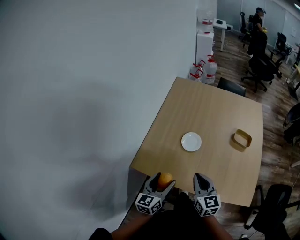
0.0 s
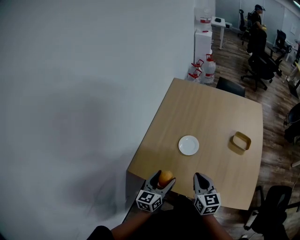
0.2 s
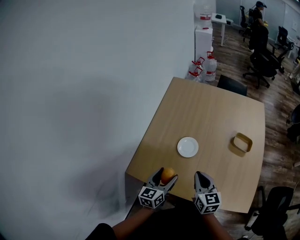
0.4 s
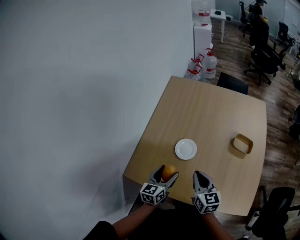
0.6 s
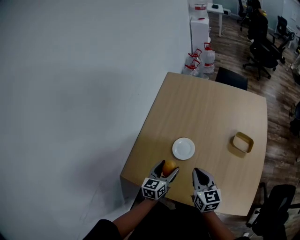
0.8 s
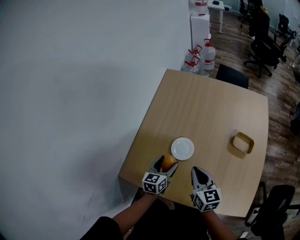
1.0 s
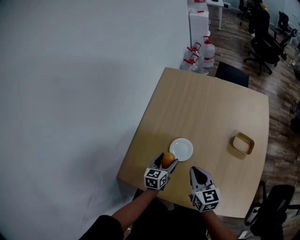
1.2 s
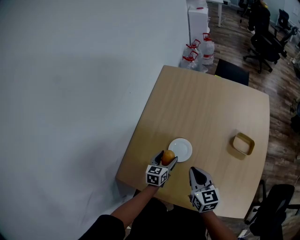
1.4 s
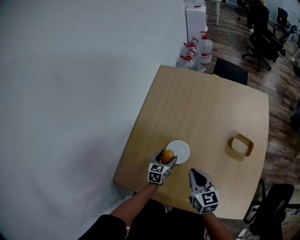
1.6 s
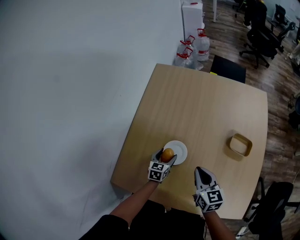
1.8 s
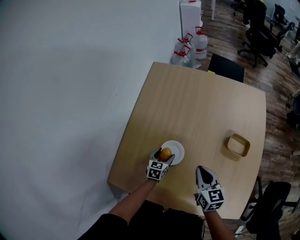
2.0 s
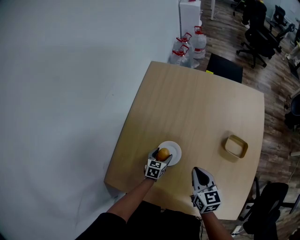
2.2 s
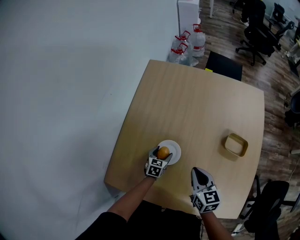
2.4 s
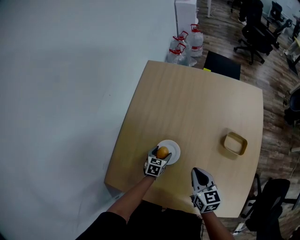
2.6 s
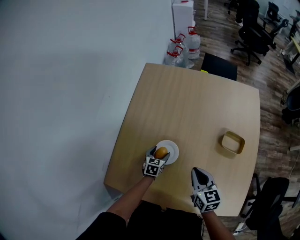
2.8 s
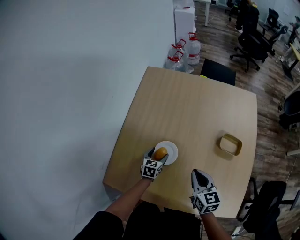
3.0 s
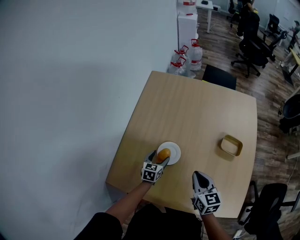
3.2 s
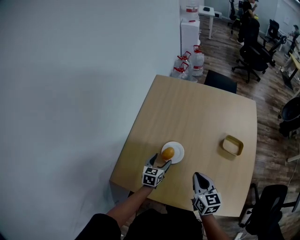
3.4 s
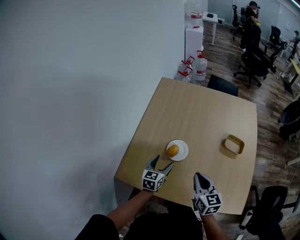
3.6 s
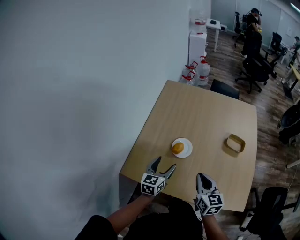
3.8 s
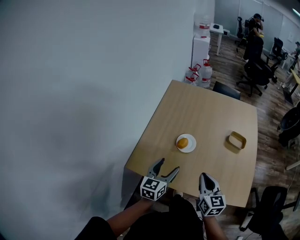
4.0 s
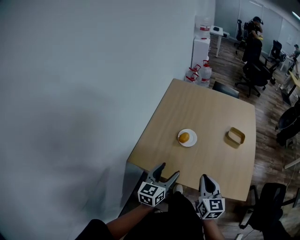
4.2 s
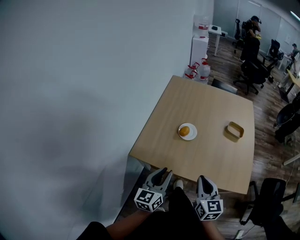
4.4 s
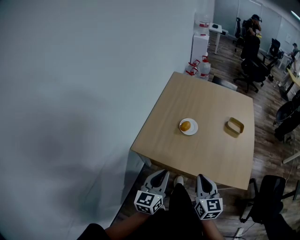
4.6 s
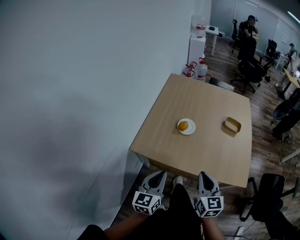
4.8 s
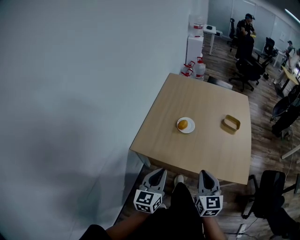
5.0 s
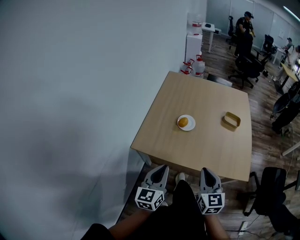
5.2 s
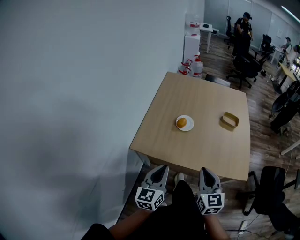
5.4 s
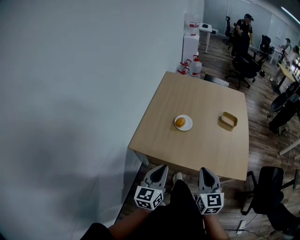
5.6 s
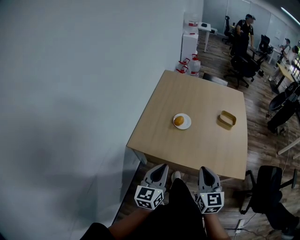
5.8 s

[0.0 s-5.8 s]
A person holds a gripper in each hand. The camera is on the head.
0.0 to 1.4 s: The right gripper travels forward by about 15 cm. The left gripper heads forward and downward, covering roughly 30 cm.
1.4 to 2.8 s: The left gripper goes about 10 cm downward and forward, while the right gripper heads to the right, covering some 5 cm.
2.8 to 4.4 s: The right gripper goes some 30 cm backward, while the left gripper travels backward and upward by approximately 50 cm, tips its fingers upward by about 40 degrees, and closes its fingers.
4.4 to 5.8 s: The left gripper travels backward by about 5 cm; the right gripper changes place by roughly 5 cm.

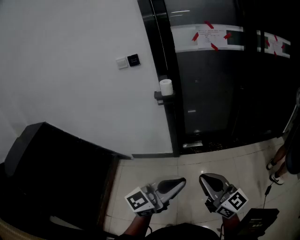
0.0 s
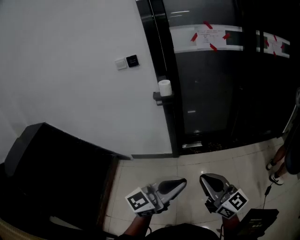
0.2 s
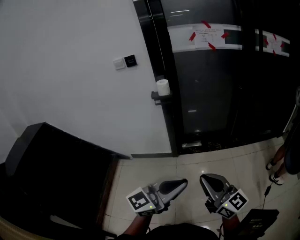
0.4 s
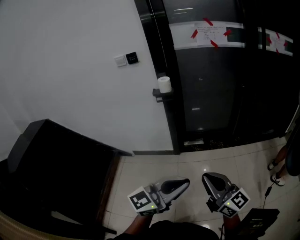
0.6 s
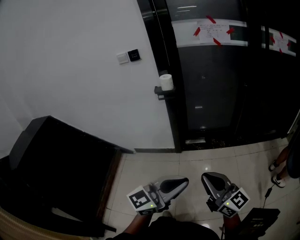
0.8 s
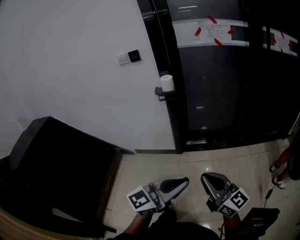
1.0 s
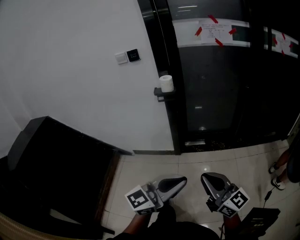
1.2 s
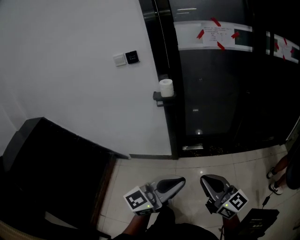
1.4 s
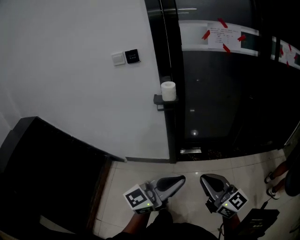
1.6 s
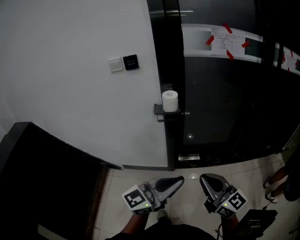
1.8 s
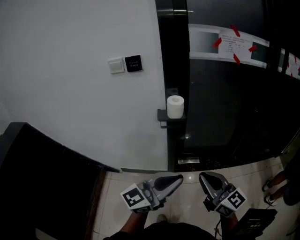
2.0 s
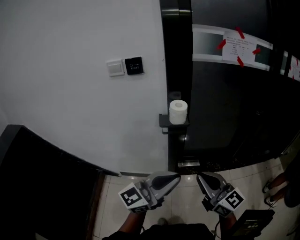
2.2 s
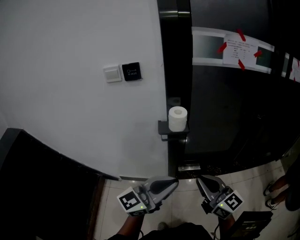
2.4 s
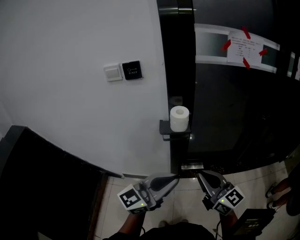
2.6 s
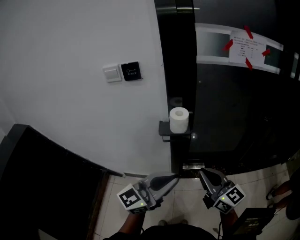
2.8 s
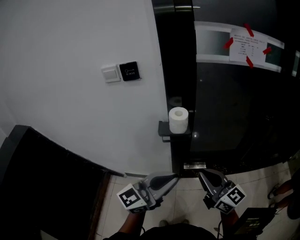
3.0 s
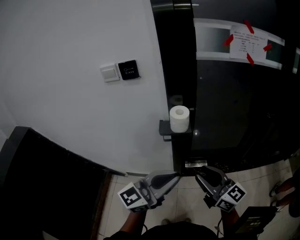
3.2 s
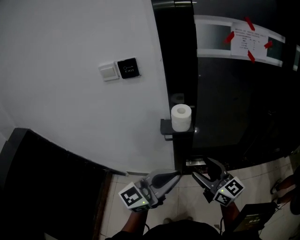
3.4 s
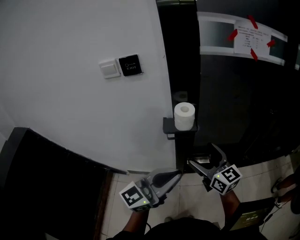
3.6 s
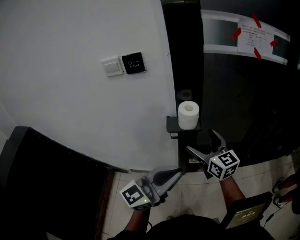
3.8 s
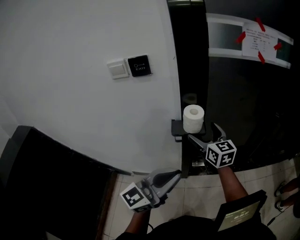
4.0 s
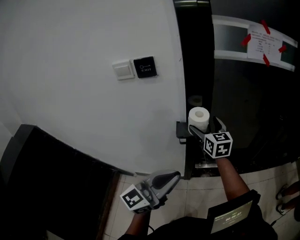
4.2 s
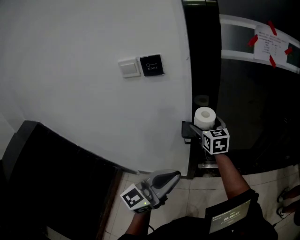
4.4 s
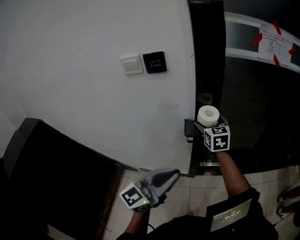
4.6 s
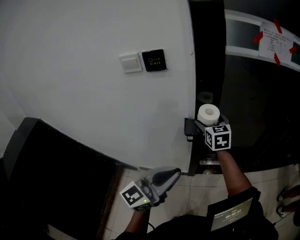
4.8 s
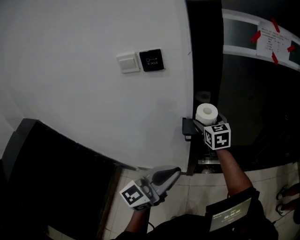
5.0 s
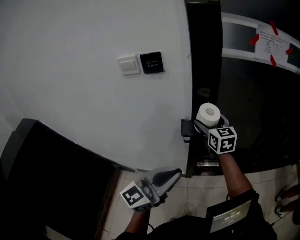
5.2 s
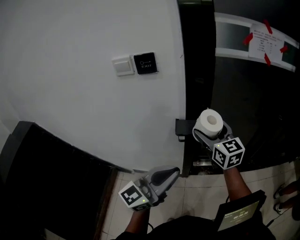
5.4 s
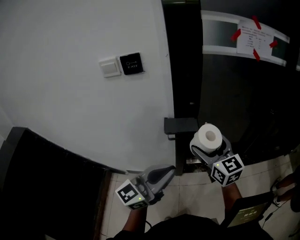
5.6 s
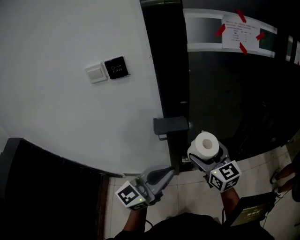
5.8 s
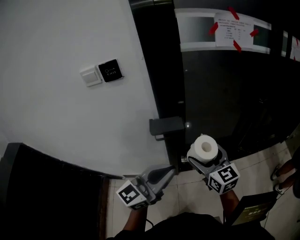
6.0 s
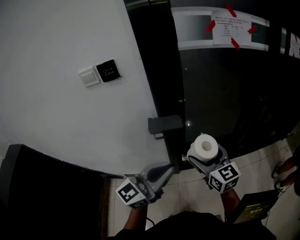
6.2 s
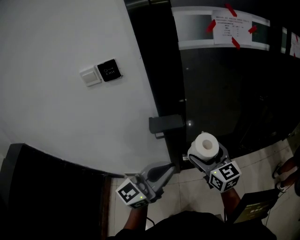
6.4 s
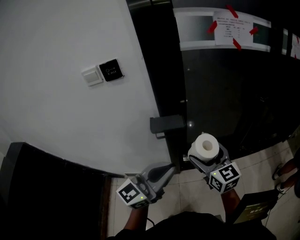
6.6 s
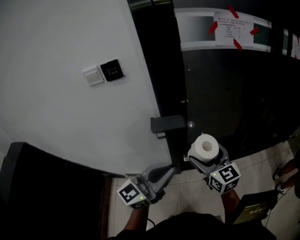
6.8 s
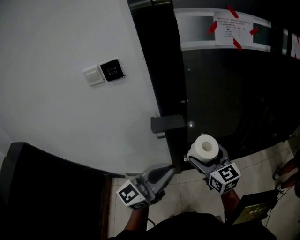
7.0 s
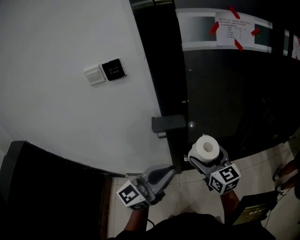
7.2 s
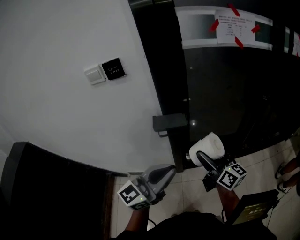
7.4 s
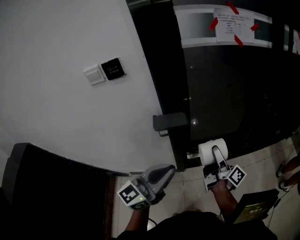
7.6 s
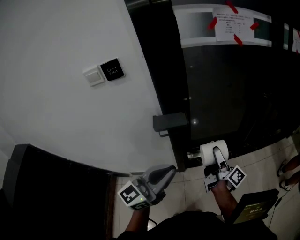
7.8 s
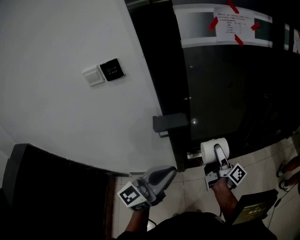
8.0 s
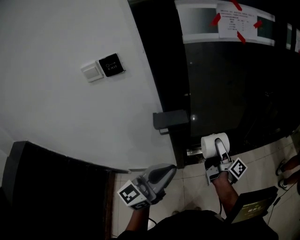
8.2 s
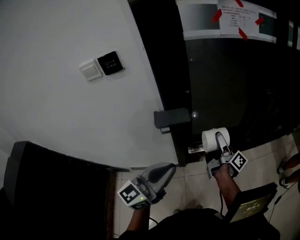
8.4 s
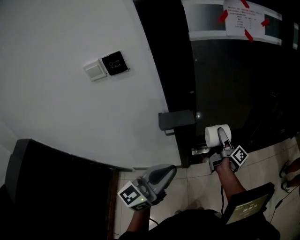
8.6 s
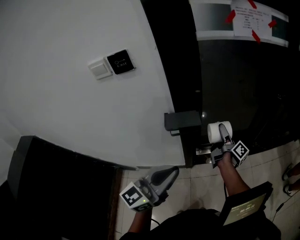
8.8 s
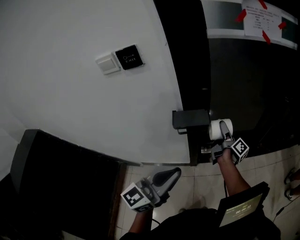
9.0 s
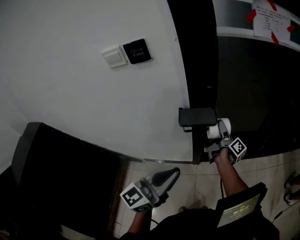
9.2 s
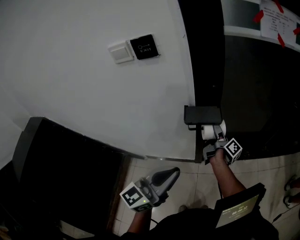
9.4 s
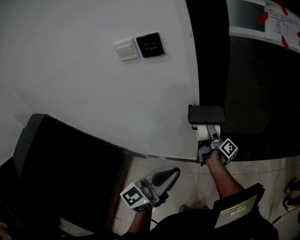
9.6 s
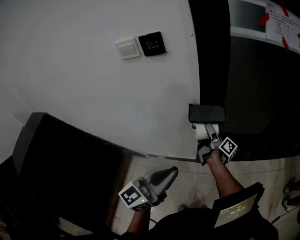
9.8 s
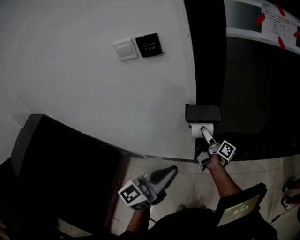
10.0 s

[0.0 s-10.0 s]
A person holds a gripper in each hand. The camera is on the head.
0.0 to 1.4 s: The grippers both shift forward by some 10 cm.
1.4 to 2.8 s: The grippers both shift forward and to the left by about 35 cm.
2.8 to 4.2 s: The left gripper moves to the left, some 10 cm. Meanwhile the right gripper heads forward and to the left, covering some 25 cm, changes its angle by about 20 degrees, and opens its fingers.
4.2 to 5.8 s: The right gripper moves backward and to the right, roughly 15 cm.
5.8 to 7.2 s: The grippers stay close to where they were, moving slightly.
7.2 to 8.6 s: The right gripper goes some 15 cm forward and downward, and rolls clockwise, seen from behind, by roughly 80 degrees.
8.6 to 10.0 s: The left gripper travels to the left by approximately 5 cm, while the right gripper travels to the left by about 20 cm, and changes its angle by some 20 degrees.

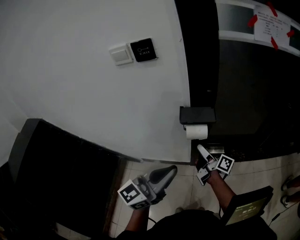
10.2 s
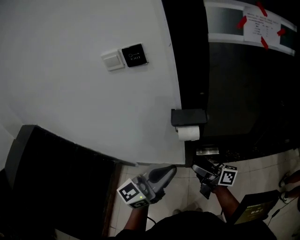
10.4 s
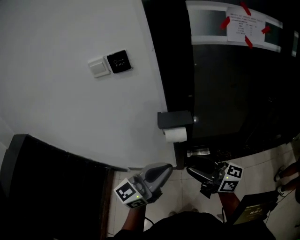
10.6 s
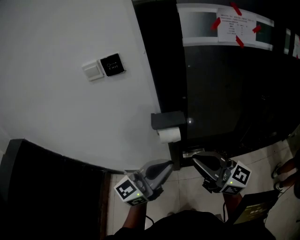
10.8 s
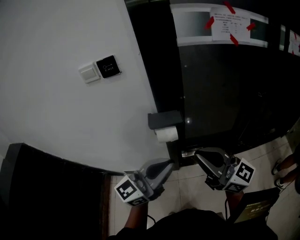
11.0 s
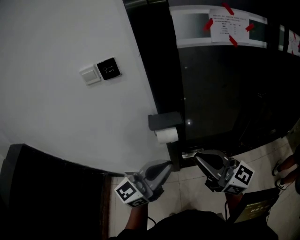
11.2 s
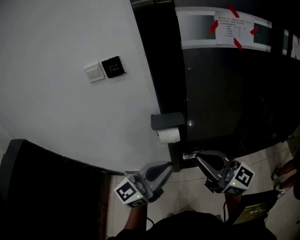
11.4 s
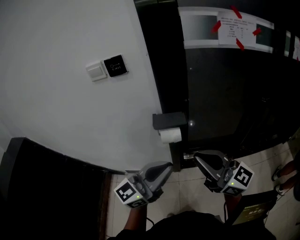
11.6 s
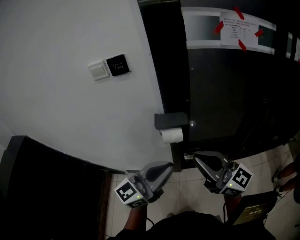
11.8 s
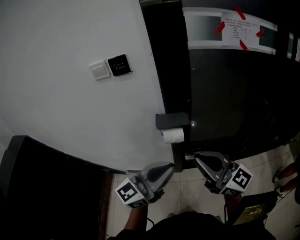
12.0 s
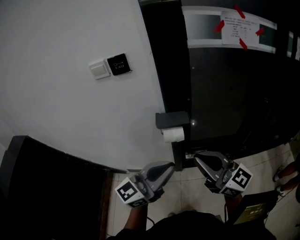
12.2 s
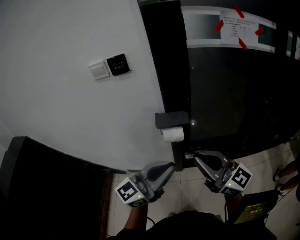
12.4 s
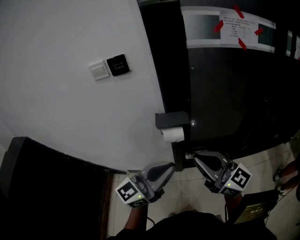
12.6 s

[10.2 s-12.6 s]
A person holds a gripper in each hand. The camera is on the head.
10.2 to 11.4 s: The left gripper travels to the right by about 5 cm. Meanwhile the right gripper heads upward and backward, covering some 30 cm, twists some 70 degrees counterclockwise, seen from behind, and closes.
11.4 to 12.6 s: The grippers make only small movements.

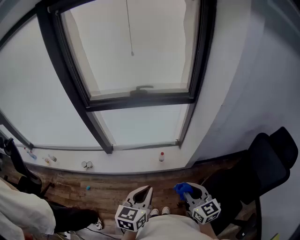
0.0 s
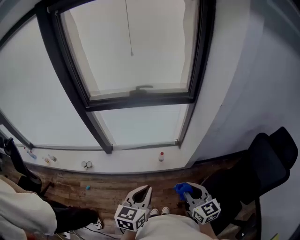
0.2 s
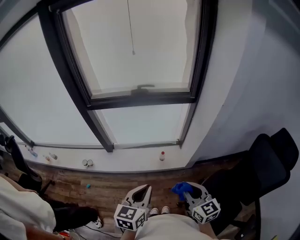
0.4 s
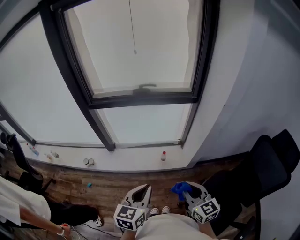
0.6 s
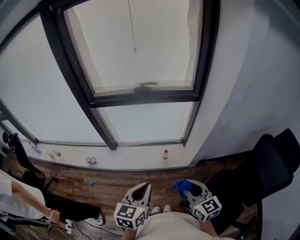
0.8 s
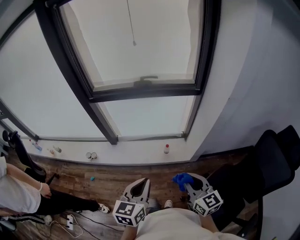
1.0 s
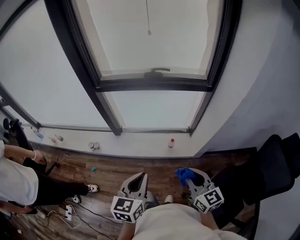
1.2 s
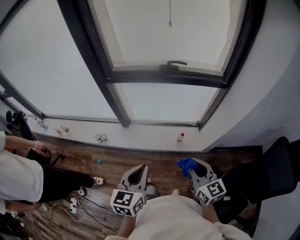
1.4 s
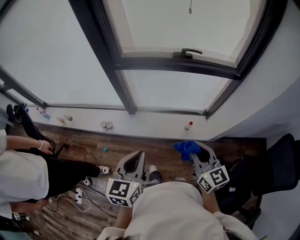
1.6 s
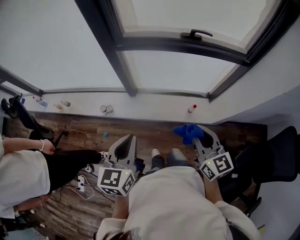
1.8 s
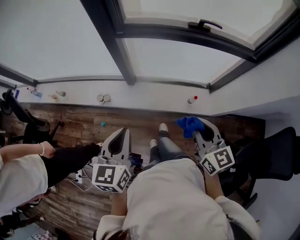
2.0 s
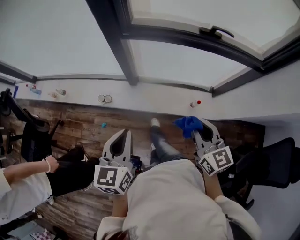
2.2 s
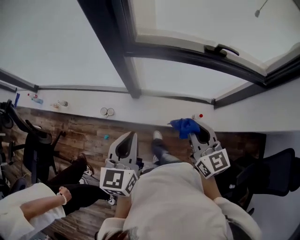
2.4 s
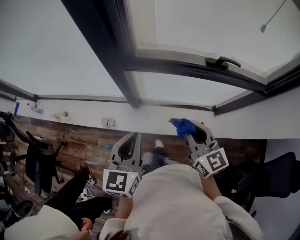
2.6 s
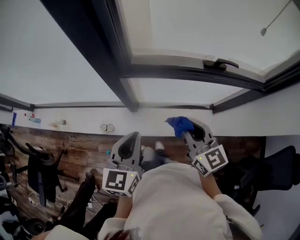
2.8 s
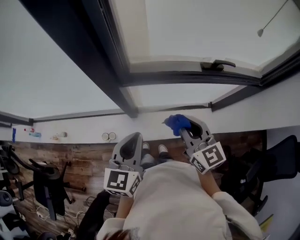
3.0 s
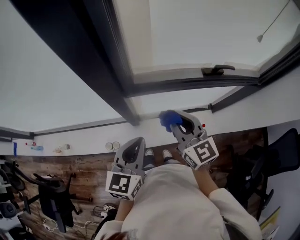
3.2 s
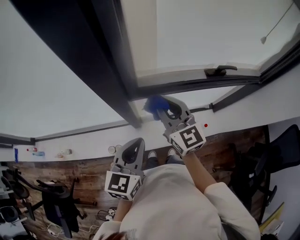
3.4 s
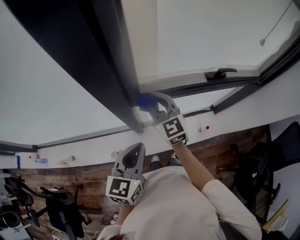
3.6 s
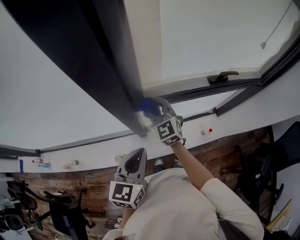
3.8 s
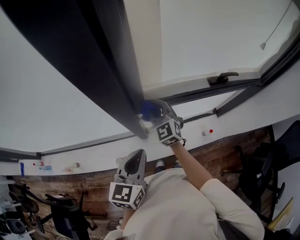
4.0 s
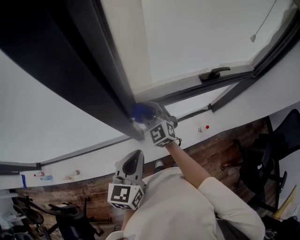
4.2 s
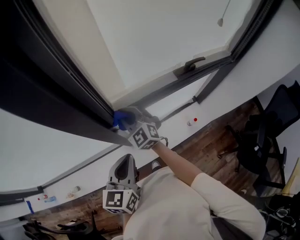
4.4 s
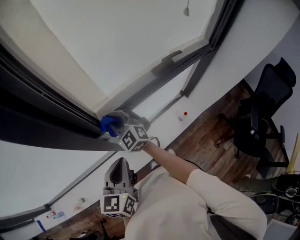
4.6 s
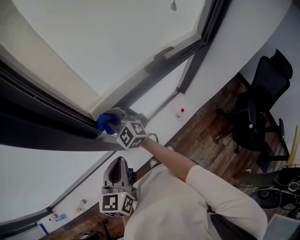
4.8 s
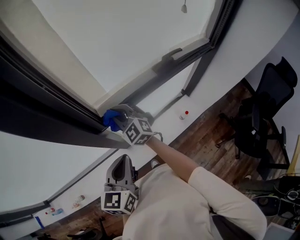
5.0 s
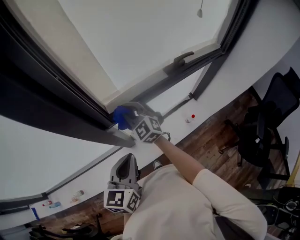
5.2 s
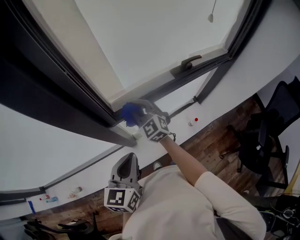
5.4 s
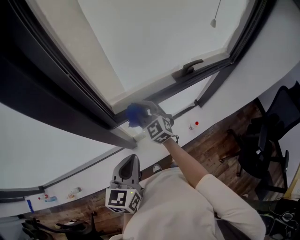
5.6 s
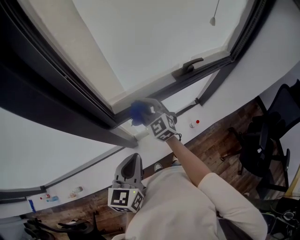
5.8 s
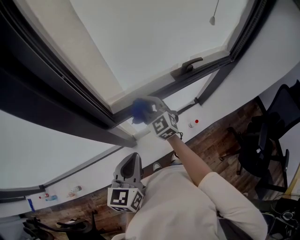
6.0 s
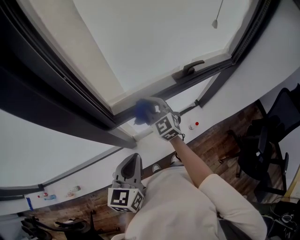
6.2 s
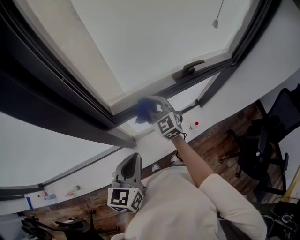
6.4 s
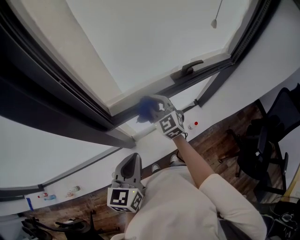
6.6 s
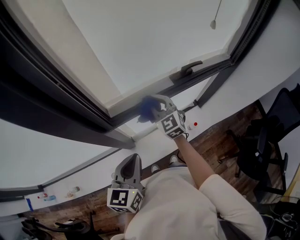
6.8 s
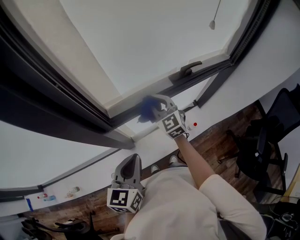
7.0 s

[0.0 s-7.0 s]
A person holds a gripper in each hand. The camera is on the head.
0.0 to 1.4 s: Both grippers move to the left and forward, some 15 cm.
1.4 to 2.8 s: The grippers both shift forward and to the left by roughly 40 cm.
2.8 to 4.2 s: The right gripper shifts some 30 cm forward and to the left, and turns by roughly 30 degrees, while the left gripper moves forward and to the left, approximately 15 cm.
4.2 to 5.6 s: The right gripper is displaced to the right by some 10 cm.
5.6 to 7.0 s: The right gripper heads to the right, covering approximately 10 cm.
